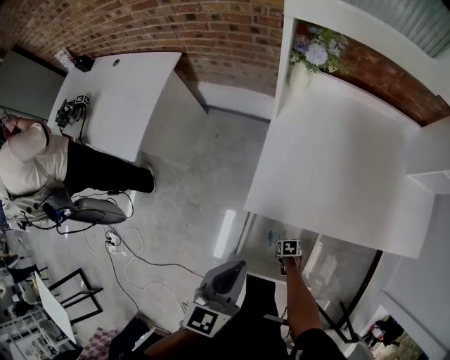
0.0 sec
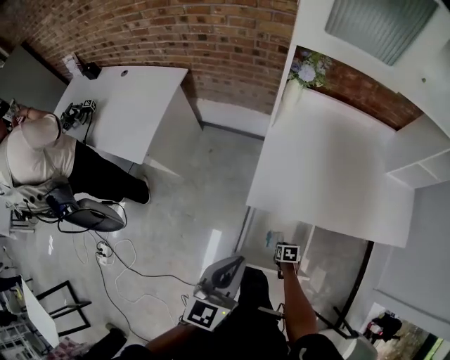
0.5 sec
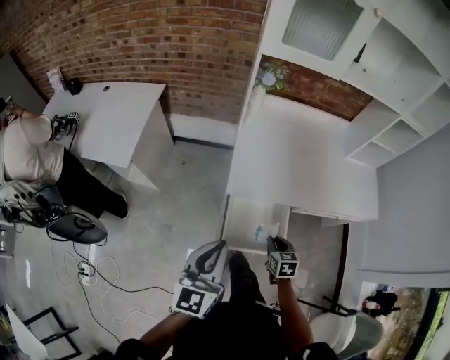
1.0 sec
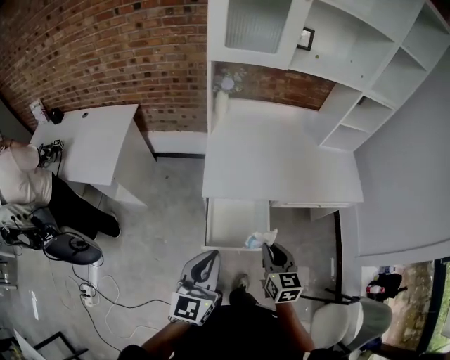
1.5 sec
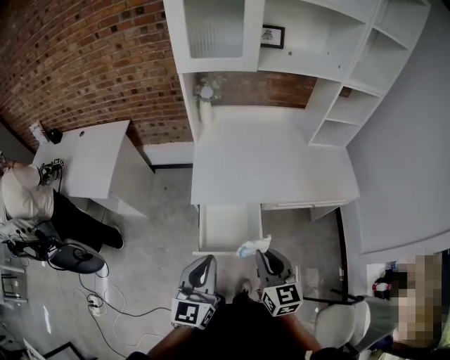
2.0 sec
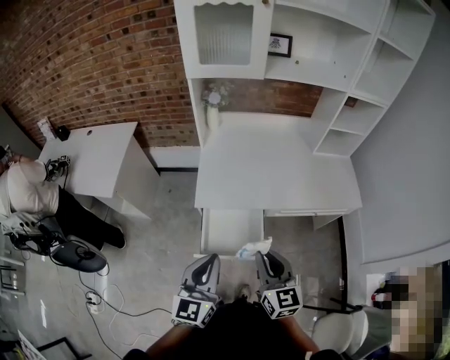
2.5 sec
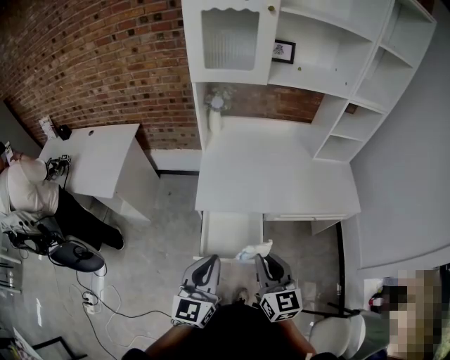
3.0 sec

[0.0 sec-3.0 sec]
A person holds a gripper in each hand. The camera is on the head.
0.0 sec to 1.5 sec: The left gripper changes place by about 25 cm, and rotates about 20 degrees. The right gripper moves upward, approximately 50 cm, and tips its fingers upward by roughly 50 degrees.
1.5 sec to 3.0 sec: The left gripper is displaced to the right by approximately 5 cm; the right gripper shifts approximately 10 cm upward.

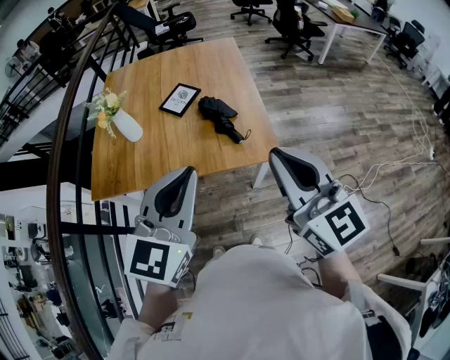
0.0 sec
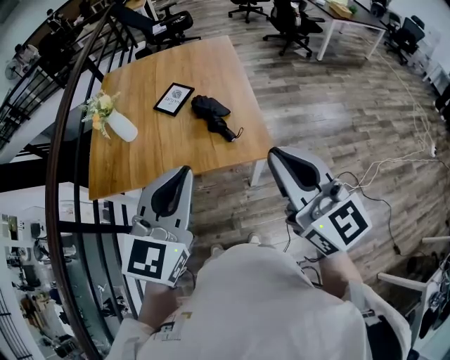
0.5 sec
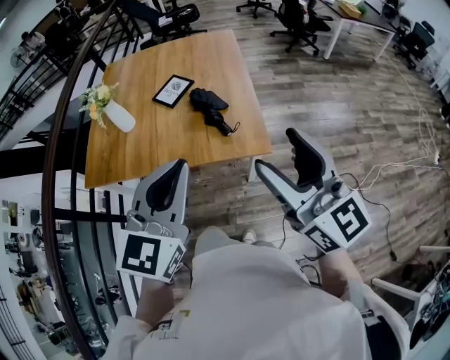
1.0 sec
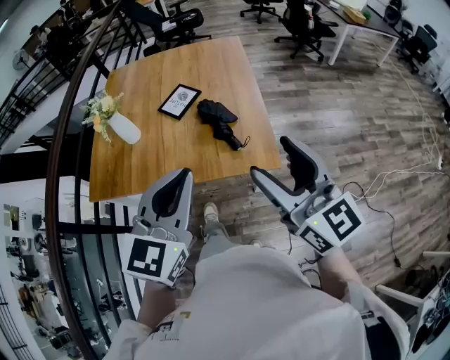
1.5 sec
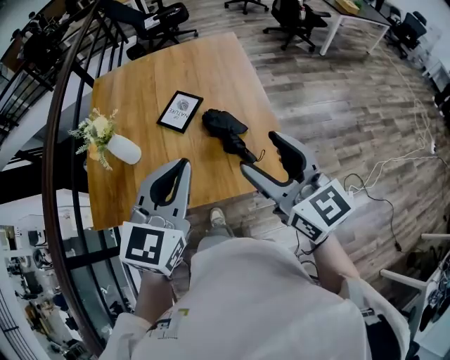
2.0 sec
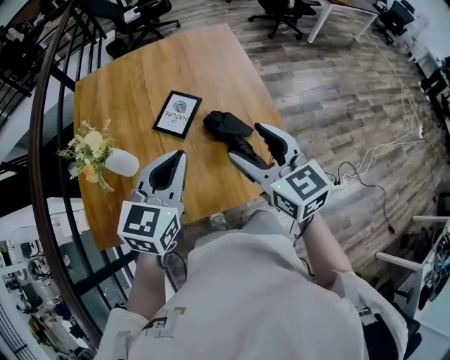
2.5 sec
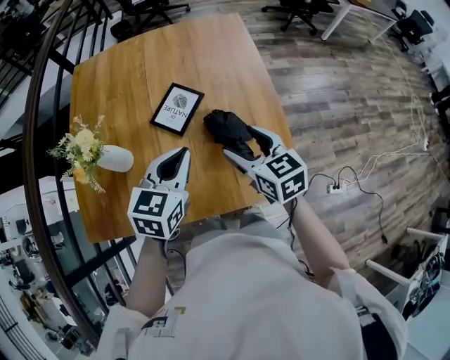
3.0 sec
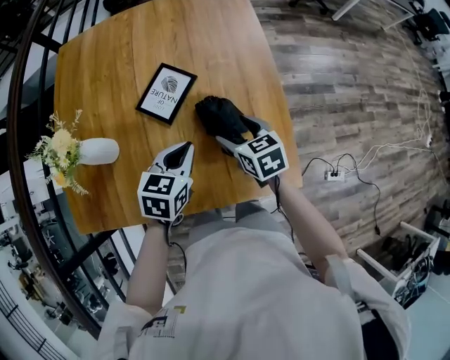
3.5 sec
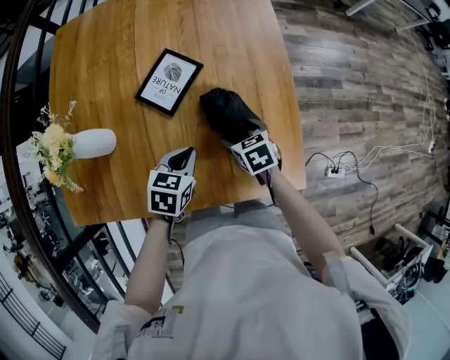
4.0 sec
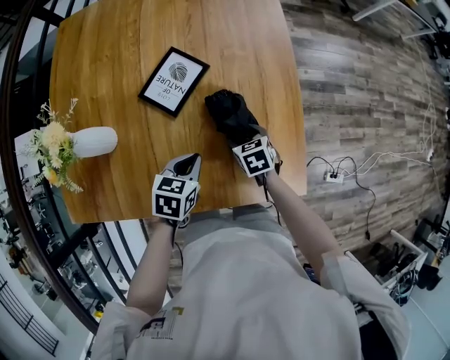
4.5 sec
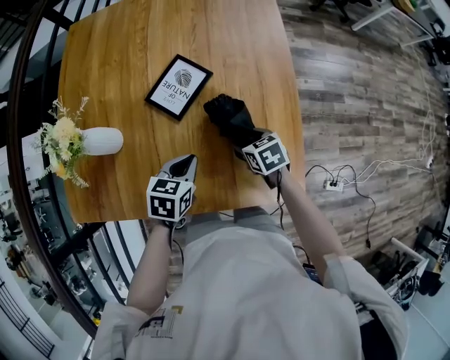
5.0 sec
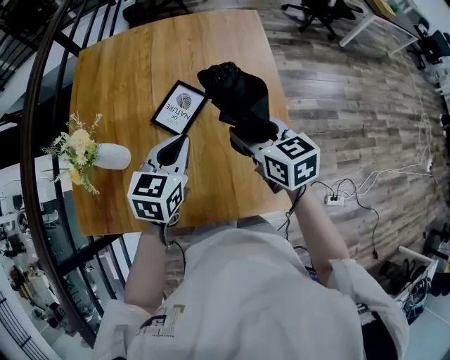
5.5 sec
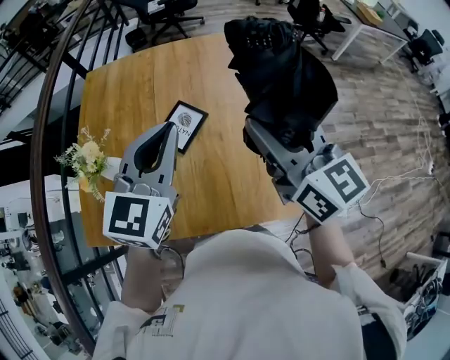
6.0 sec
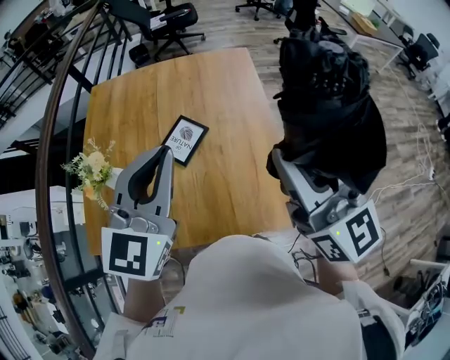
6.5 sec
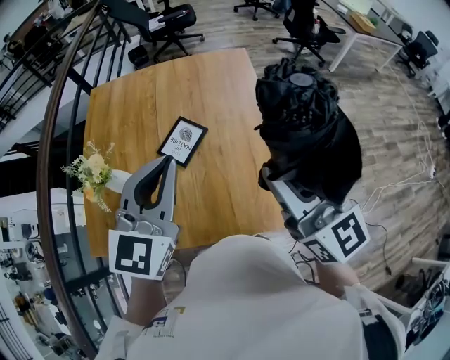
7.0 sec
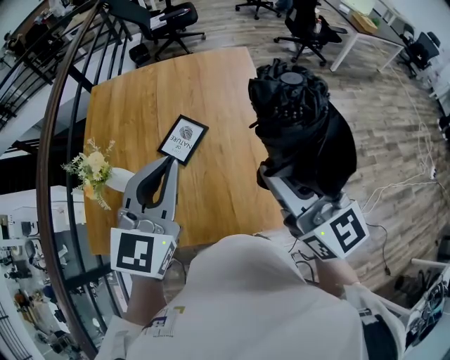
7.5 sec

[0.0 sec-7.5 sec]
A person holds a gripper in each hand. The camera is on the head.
0.0 sec to 2.0 sec: The grippers both shift forward by some 20 cm. The right gripper opens.
2.0 sec to 4.0 sec: Both grippers move downward and forward, roughly 50 cm. The left gripper points its fingers roughly 40 degrees further downward, while the right gripper tips its fingers downward by approximately 50 degrees.
4.0 sec to 5.5 sec: The two grippers go roughly 20 cm upward. The left gripper rotates about 20 degrees; the right gripper changes its angle by about 30 degrees.
5.5 sec to 7.5 sec: The right gripper is displaced upward and backward by roughly 25 cm, and angles its fingers upward, by approximately 30 degrees. Meanwhile the left gripper is displaced upward by some 20 cm, and swivels about 30 degrees.

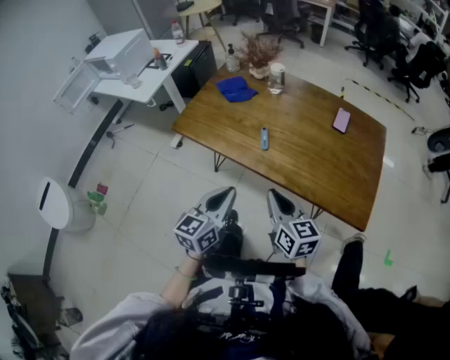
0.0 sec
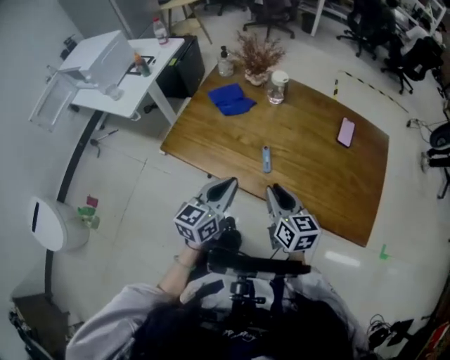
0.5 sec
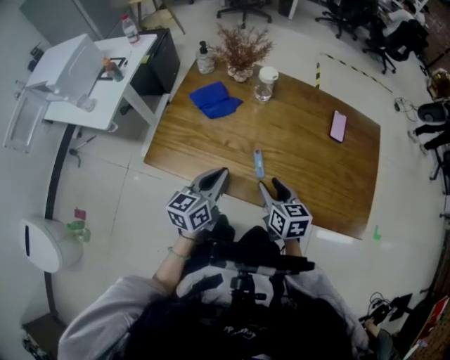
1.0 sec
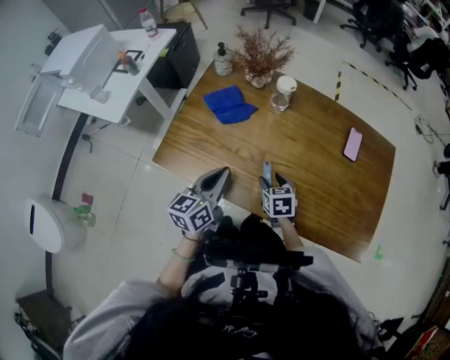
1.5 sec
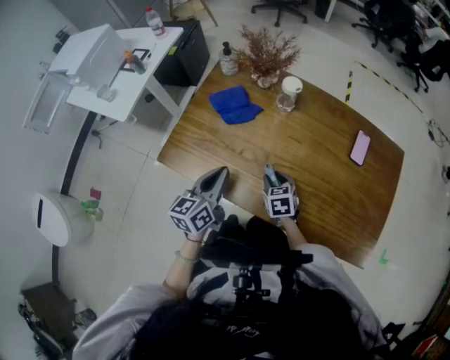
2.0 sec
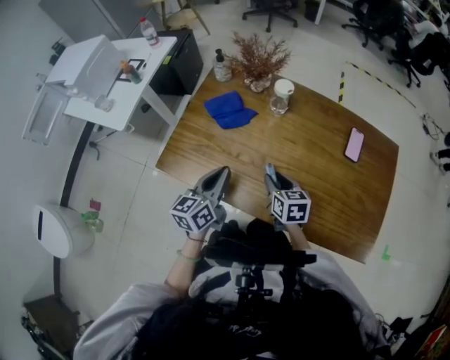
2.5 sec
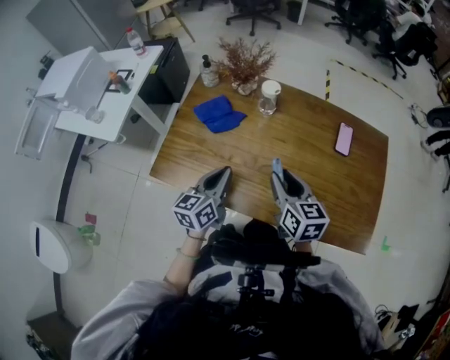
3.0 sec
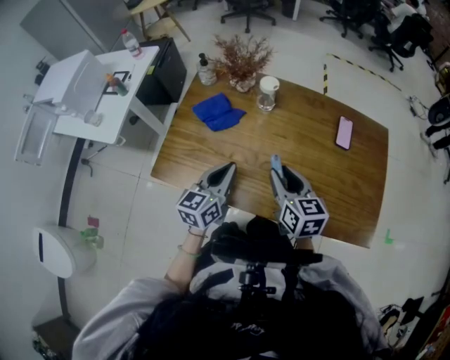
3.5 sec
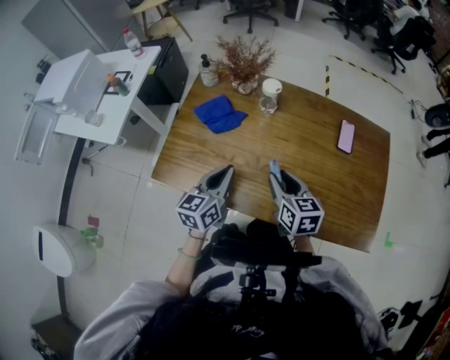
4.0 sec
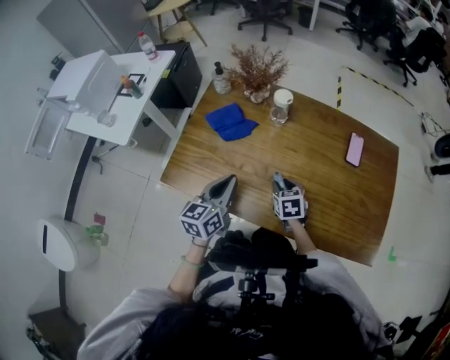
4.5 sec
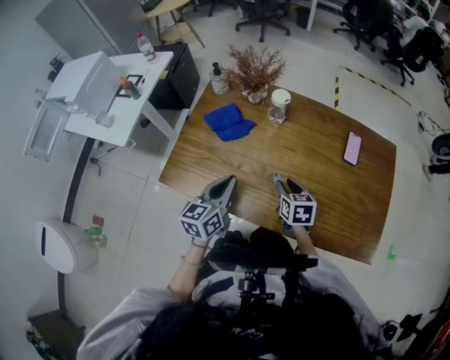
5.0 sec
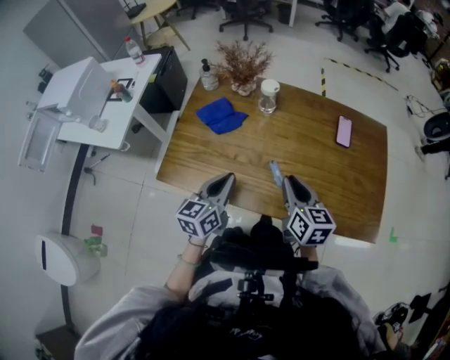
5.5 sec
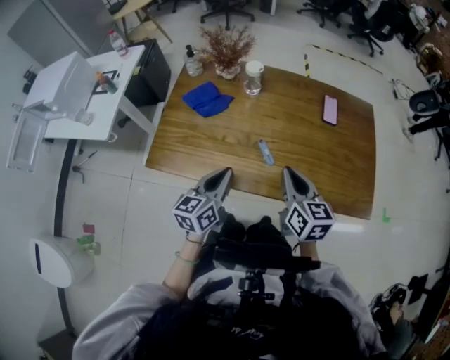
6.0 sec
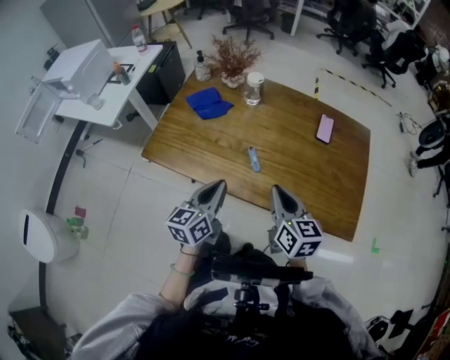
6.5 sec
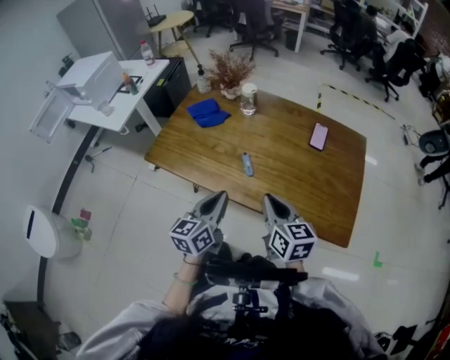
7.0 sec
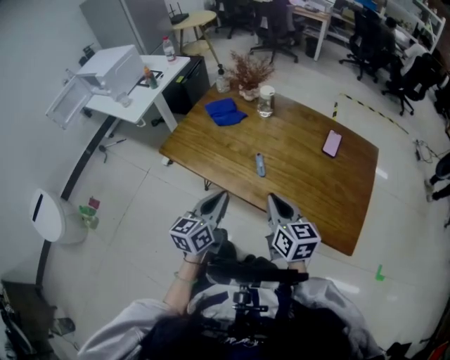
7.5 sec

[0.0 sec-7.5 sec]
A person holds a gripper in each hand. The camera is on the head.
0.0 sec to 2.0 sec: The left gripper heads forward, covering approximately 30 cm. The right gripper travels forward and downward by roughly 35 cm, tilts its fingers roughly 30 degrees downward, and opens up.
2.0 sec to 4.0 sec: The right gripper goes roughly 15 cm upward, and swivels about 30 degrees.
4.0 sec to 5.5 sec: The right gripper goes downward and returns, about 15 cm each way.
5.5 sec to 7.5 sec: The left gripper is displaced backward and to the right by approximately 20 cm. Meanwhile the right gripper travels backward by approximately 15 cm.

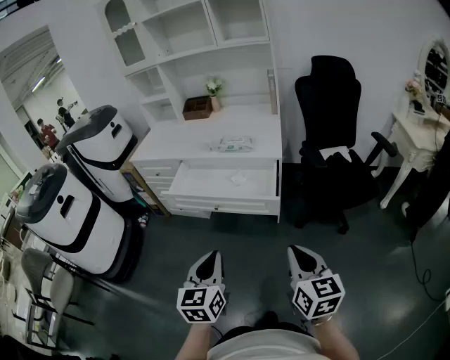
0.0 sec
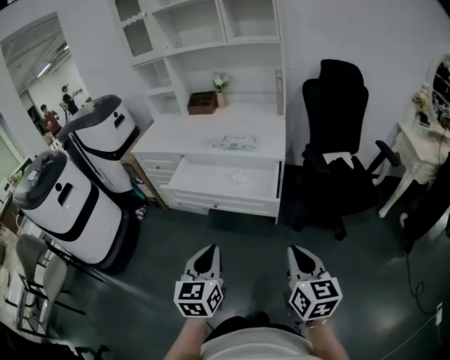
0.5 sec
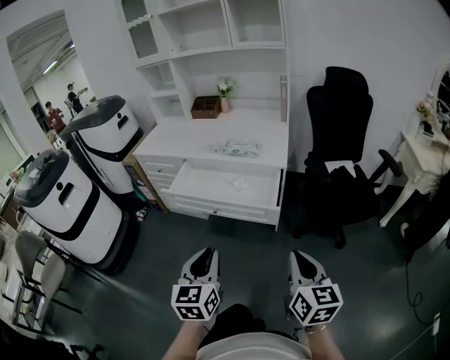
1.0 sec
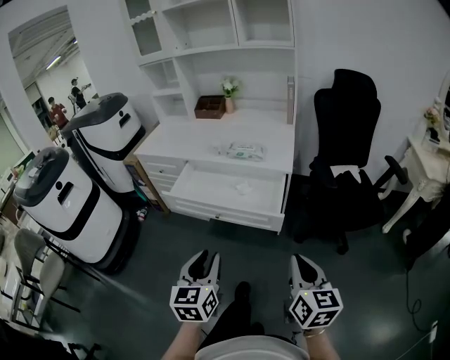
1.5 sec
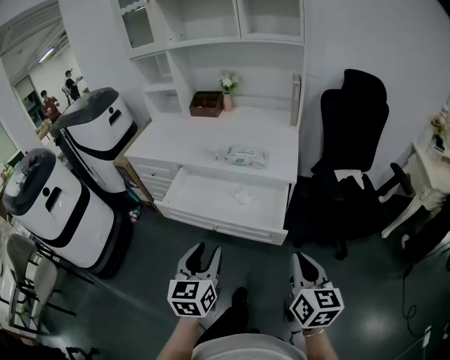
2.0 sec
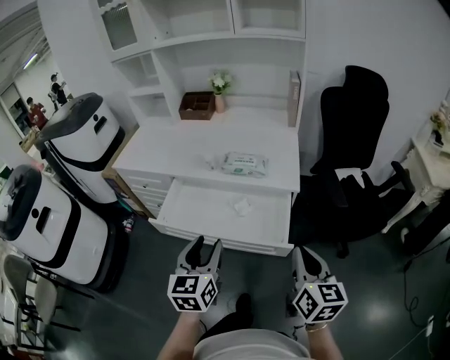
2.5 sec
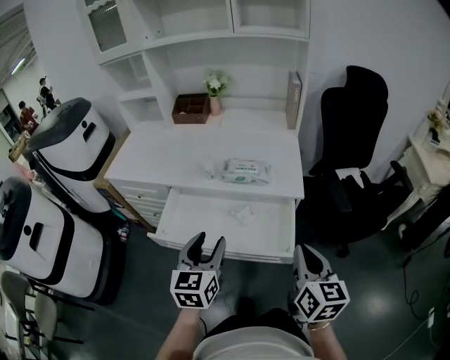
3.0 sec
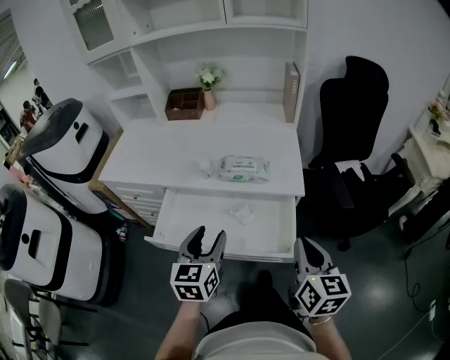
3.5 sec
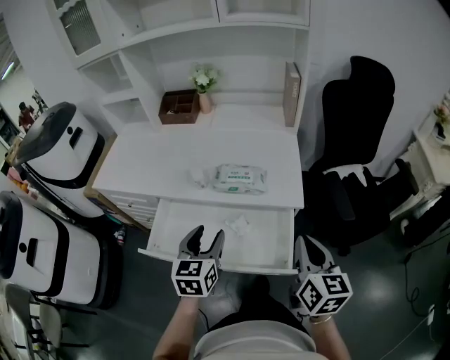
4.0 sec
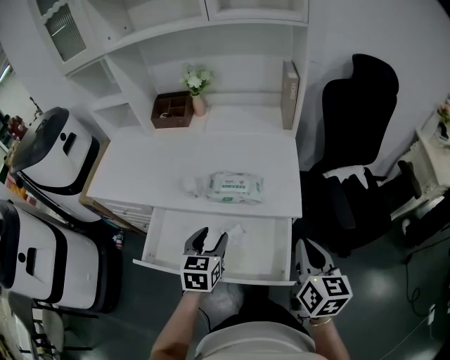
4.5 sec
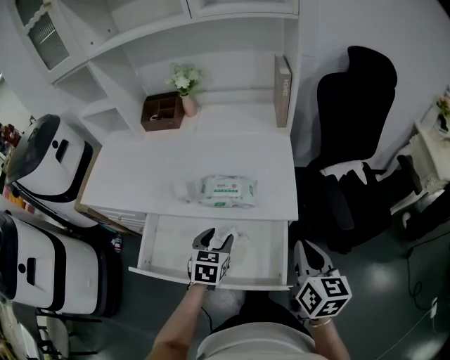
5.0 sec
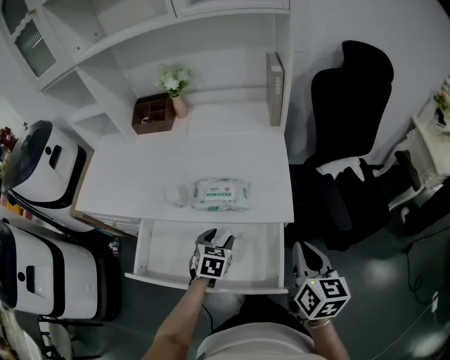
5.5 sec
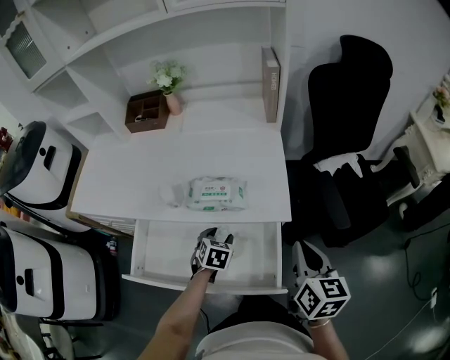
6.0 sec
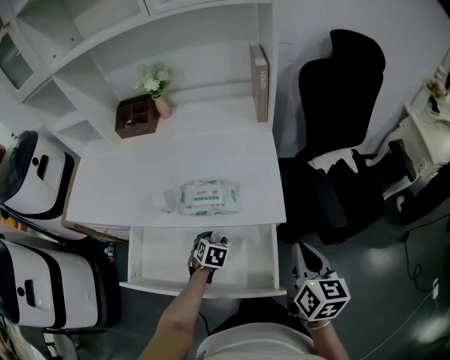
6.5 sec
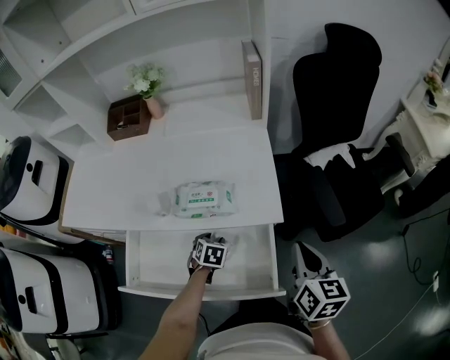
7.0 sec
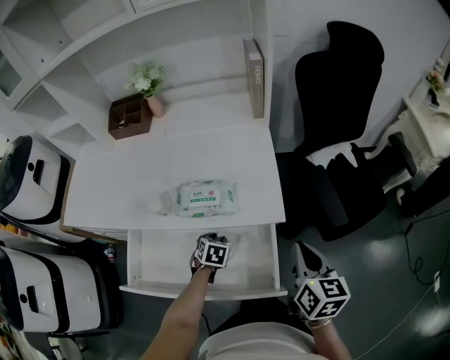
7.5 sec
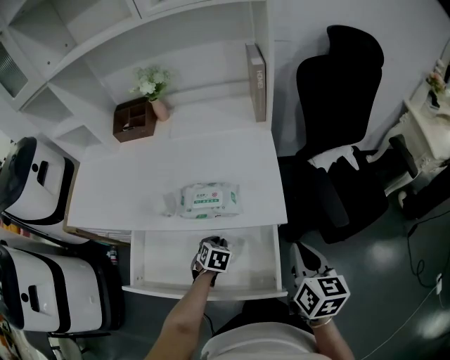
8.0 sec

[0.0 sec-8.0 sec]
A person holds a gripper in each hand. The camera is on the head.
0.0 sec to 2.0 sec: The two grippers go about 15 cm forward. The left gripper opens its fingers.
2.0 sec to 4.0 sec: The grippers both shift forward by some 25 cm.
4.0 sec to 6.0 sec: The right gripper is displaced forward and to the right by about 10 cm; the left gripper moves downward and forward, approximately 25 cm, and points its fingers roughly 30 degrees further downward.
6.0 sec to 8.0 sec: The left gripper closes its fingers.
